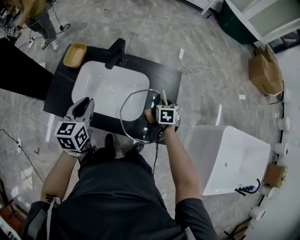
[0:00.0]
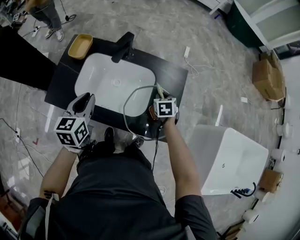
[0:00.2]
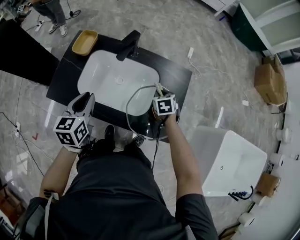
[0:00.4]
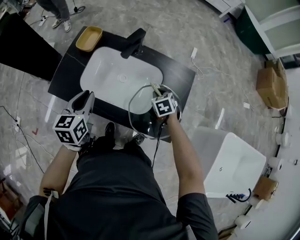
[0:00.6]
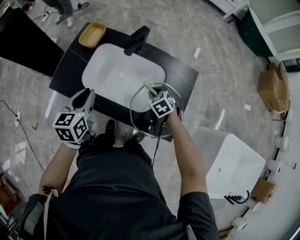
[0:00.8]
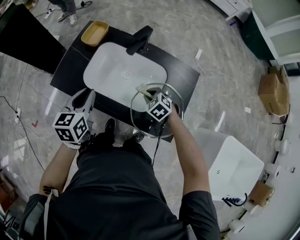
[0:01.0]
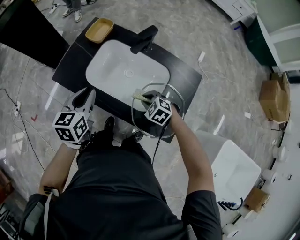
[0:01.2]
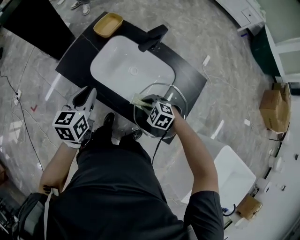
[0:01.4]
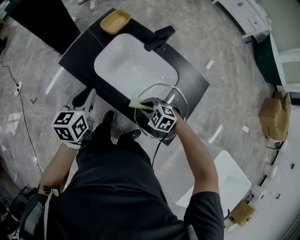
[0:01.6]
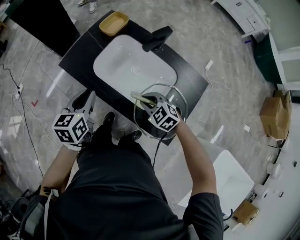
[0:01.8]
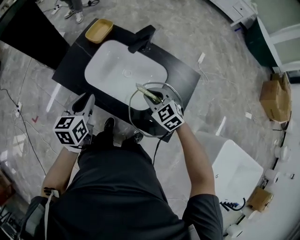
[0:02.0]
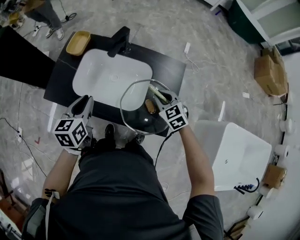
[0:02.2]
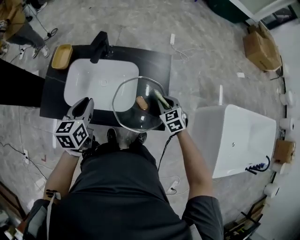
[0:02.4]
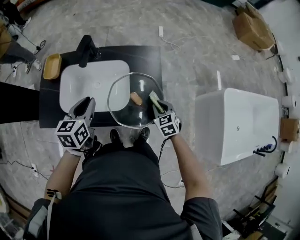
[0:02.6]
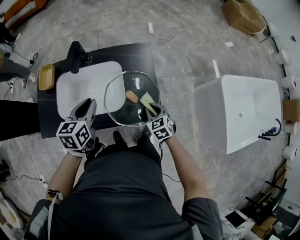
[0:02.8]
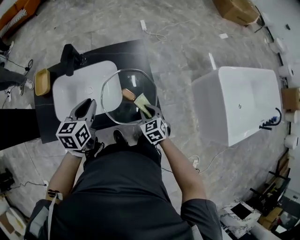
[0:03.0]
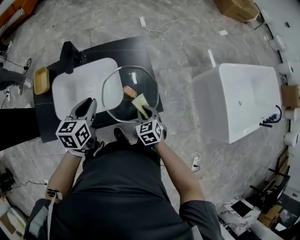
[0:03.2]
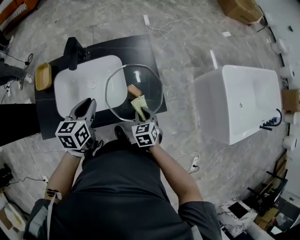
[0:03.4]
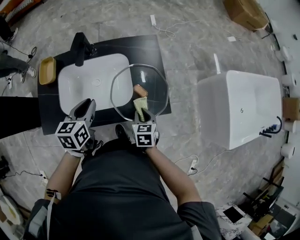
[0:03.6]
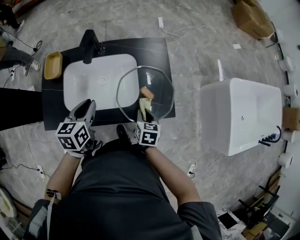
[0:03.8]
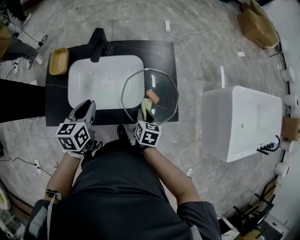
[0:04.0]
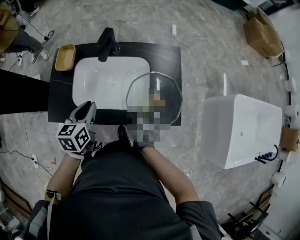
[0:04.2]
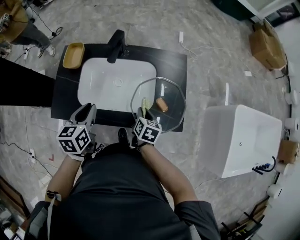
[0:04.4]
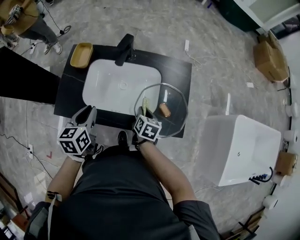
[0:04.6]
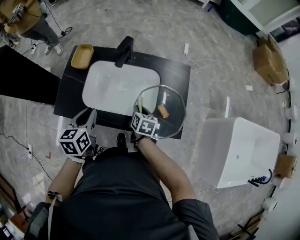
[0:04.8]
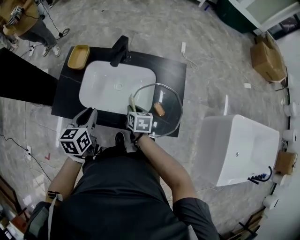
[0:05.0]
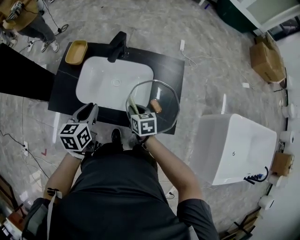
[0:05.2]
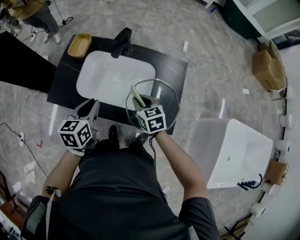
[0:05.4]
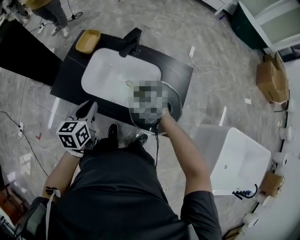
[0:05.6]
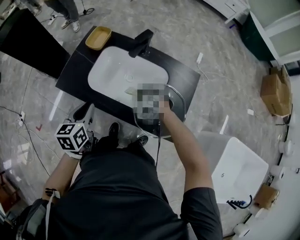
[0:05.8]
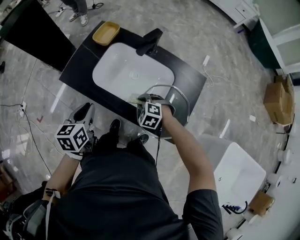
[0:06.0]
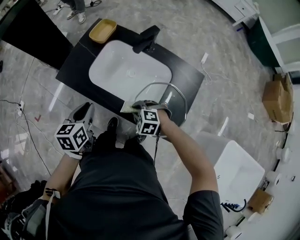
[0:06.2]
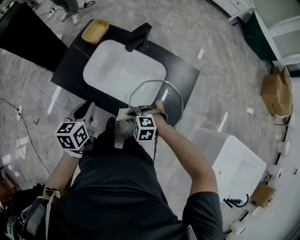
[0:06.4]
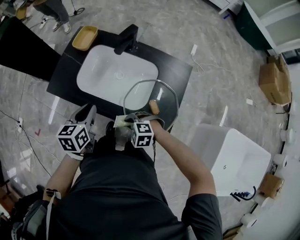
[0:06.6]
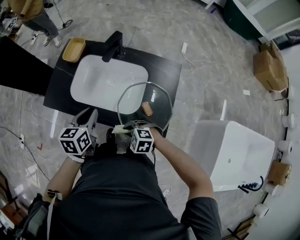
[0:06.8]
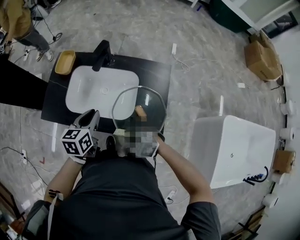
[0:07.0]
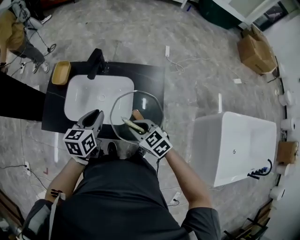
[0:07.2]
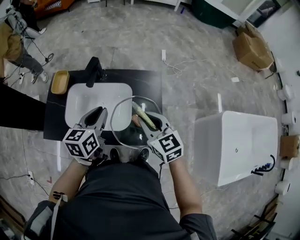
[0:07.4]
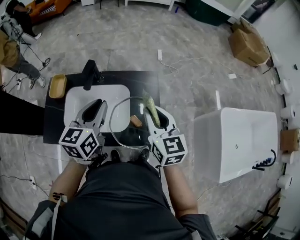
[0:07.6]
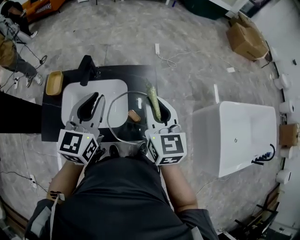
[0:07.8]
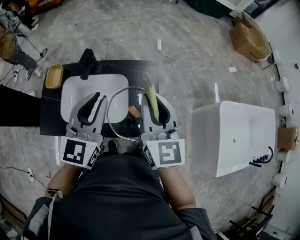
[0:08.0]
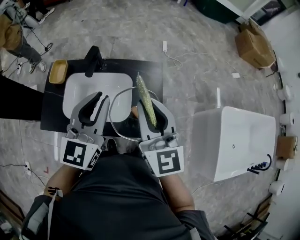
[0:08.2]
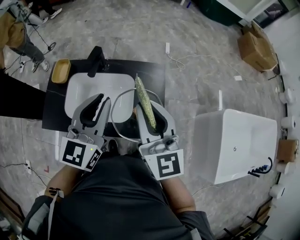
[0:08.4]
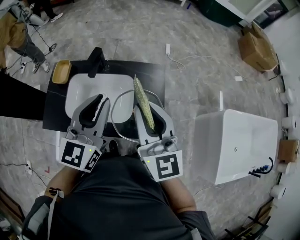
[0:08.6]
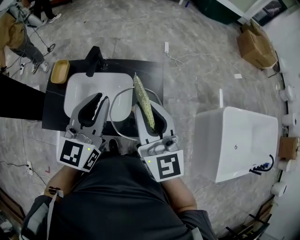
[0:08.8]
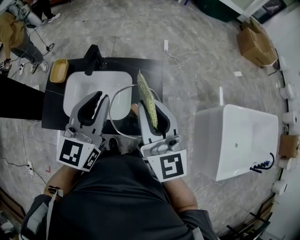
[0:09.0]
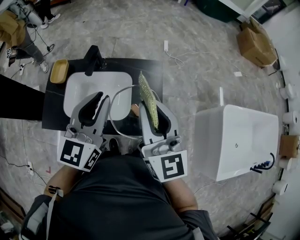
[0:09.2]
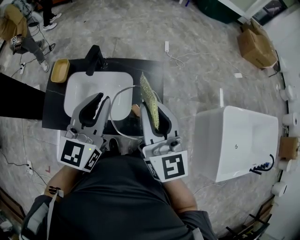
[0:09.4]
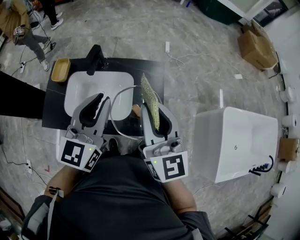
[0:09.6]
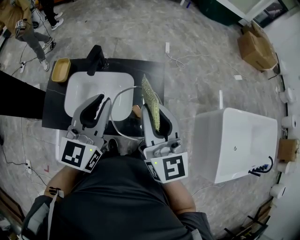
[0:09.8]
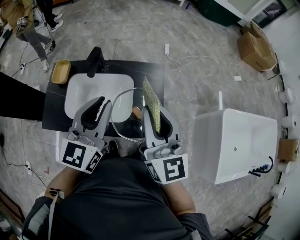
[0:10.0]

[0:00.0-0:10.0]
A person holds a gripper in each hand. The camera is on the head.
0:00.0 to 0:01.4: The left gripper ends up approximately 10 cm from where it was; the right gripper shifts by approximately 20 cm, and twists approximately 70 degrees counterclockwise, seen from behind.
0:01.4 to 0:02.8: The right gripper travels upward and back again, about 10 cm each way, and rotates approximately 80 degrees; the left gripper ends up some 20 cm from where it was, and swivels some 40 degrees.
0:02.8 to 0:04.2: The two grippers go roughly 10 cm to the left. The right gripper rotates around the line of its fingers by about 40 degrees, clockwise from behind.
0:04.2 to 0:05.8: The left gripper shifts by some 10 cm, and rotates roughly 20 degrees. The right gripper goes upward and returns, approximately 10 cm each way, and twists roughly 100 degrees counterclockwise, seen from behind.
0:05.8 to 0:07.2: The left gripper shifts by roughly 20 cm, and changes its angle by some 20 degrees, while the right gripper changes place by about 20 cm, and rolls clockwise, seen from behind, by some 40 degrees.
0:07.2 to 0:08.6: Both grippers travel together upward, about 25 cm. The left gripper turns by roughly 30 degrees; the right gripper angles its fingers upward, by some 40 degrees.
0:08.6 to 0:10.0: The grippers move only a little.

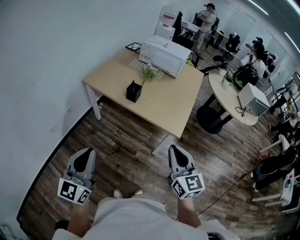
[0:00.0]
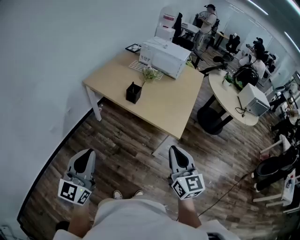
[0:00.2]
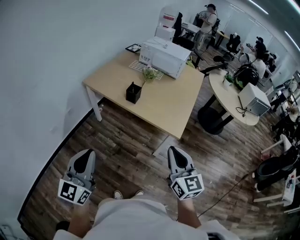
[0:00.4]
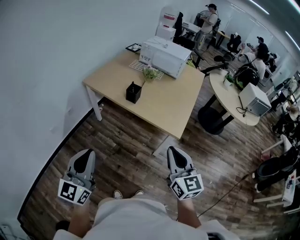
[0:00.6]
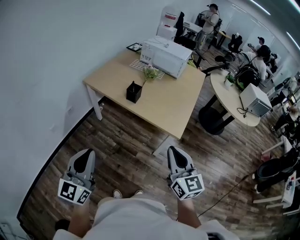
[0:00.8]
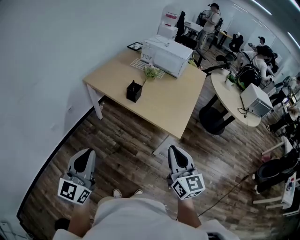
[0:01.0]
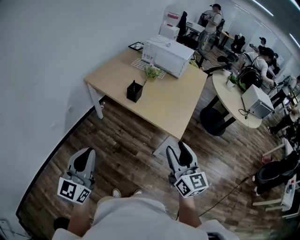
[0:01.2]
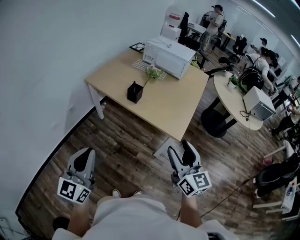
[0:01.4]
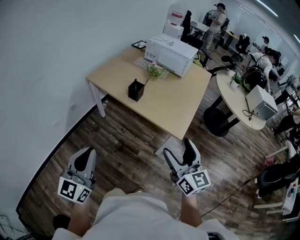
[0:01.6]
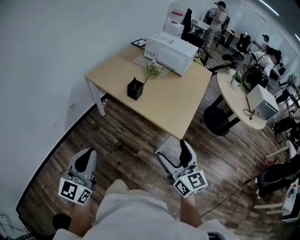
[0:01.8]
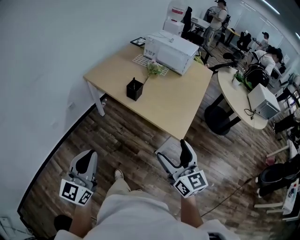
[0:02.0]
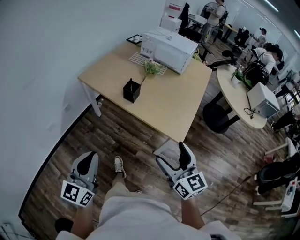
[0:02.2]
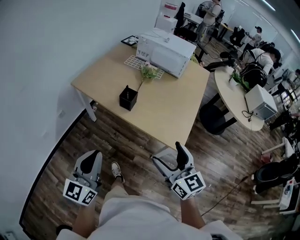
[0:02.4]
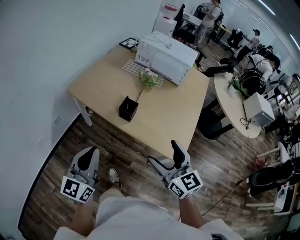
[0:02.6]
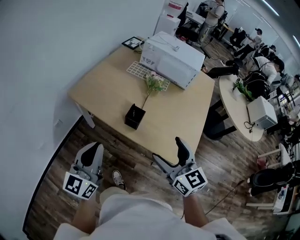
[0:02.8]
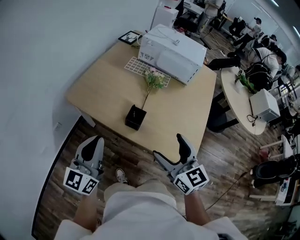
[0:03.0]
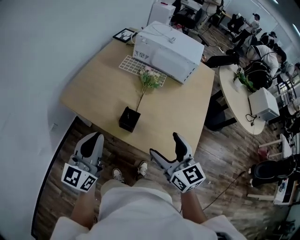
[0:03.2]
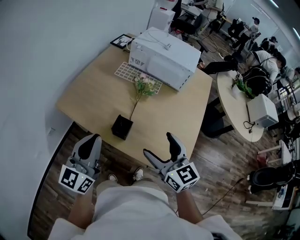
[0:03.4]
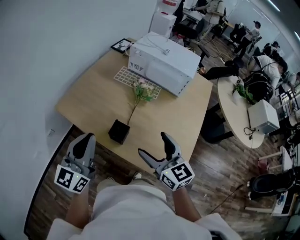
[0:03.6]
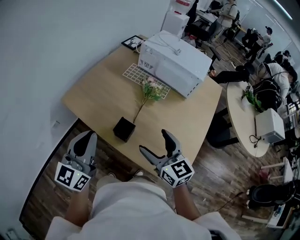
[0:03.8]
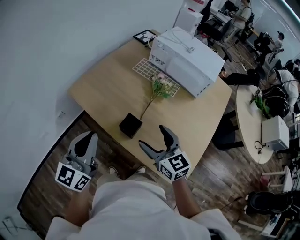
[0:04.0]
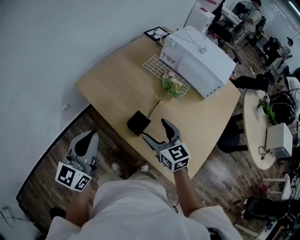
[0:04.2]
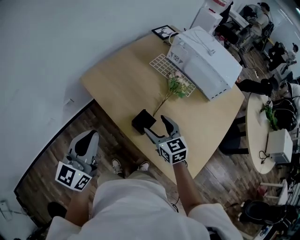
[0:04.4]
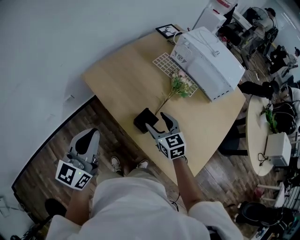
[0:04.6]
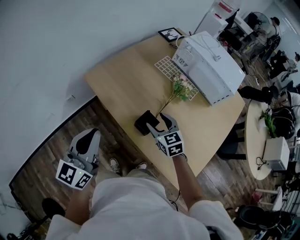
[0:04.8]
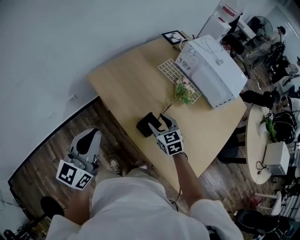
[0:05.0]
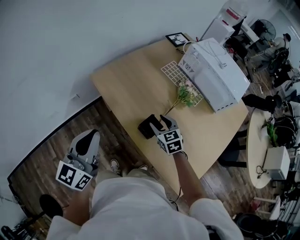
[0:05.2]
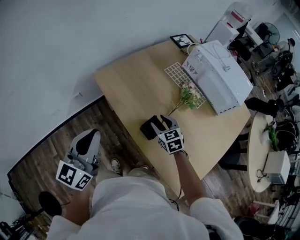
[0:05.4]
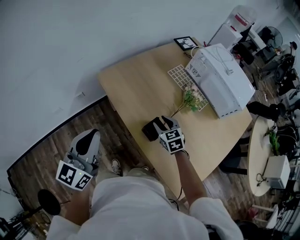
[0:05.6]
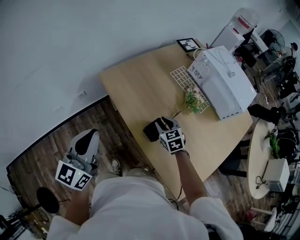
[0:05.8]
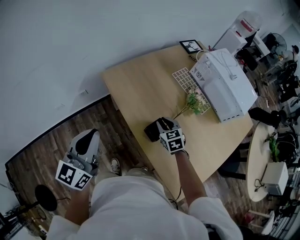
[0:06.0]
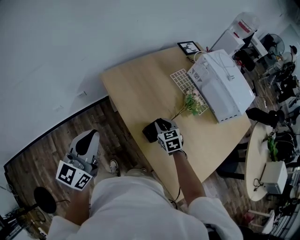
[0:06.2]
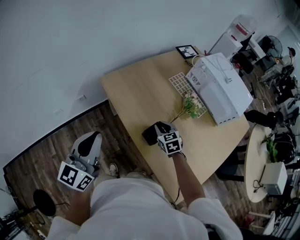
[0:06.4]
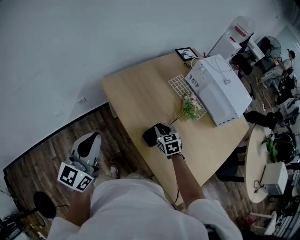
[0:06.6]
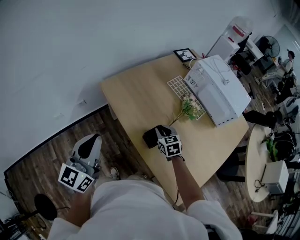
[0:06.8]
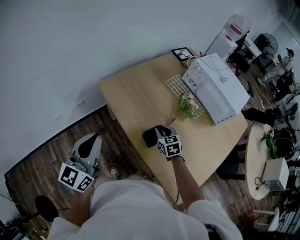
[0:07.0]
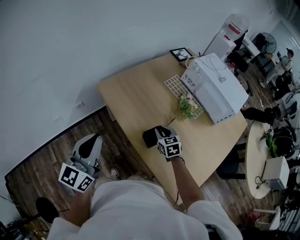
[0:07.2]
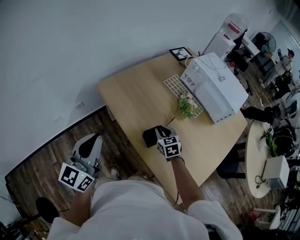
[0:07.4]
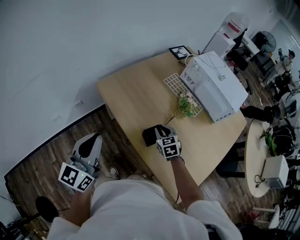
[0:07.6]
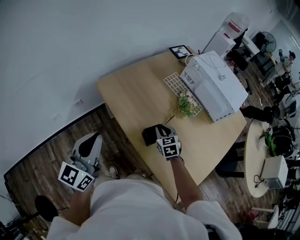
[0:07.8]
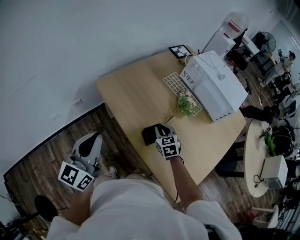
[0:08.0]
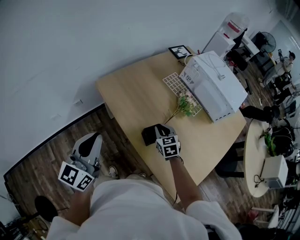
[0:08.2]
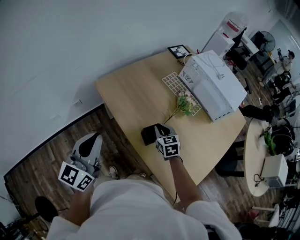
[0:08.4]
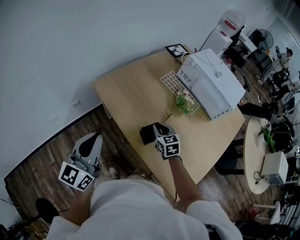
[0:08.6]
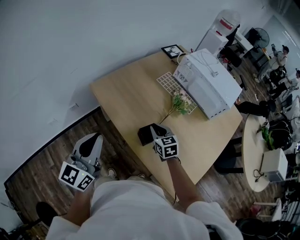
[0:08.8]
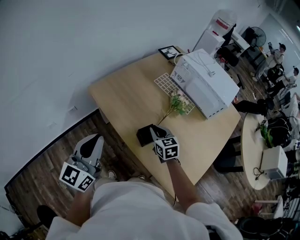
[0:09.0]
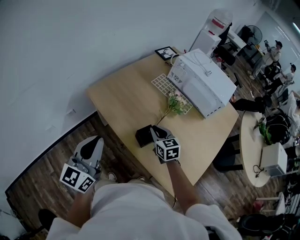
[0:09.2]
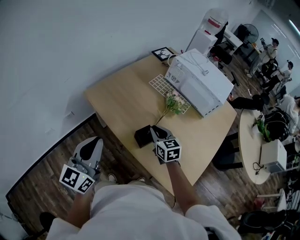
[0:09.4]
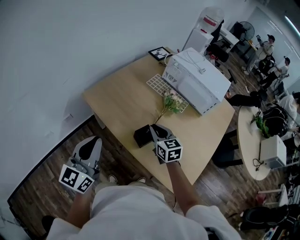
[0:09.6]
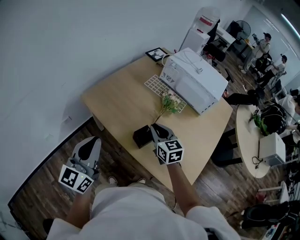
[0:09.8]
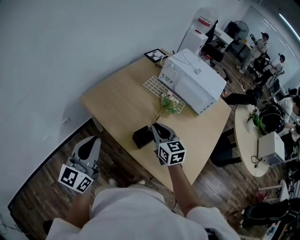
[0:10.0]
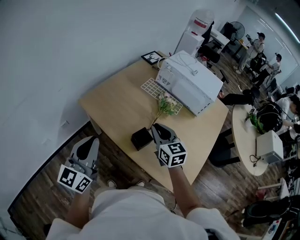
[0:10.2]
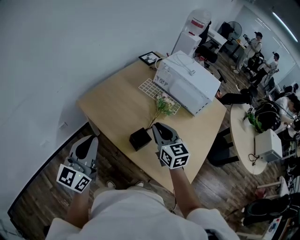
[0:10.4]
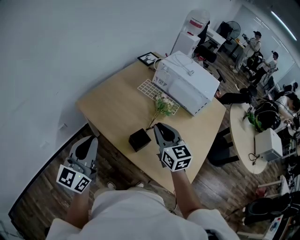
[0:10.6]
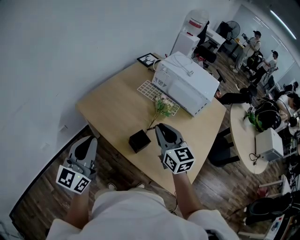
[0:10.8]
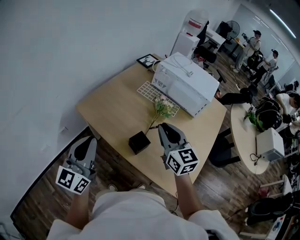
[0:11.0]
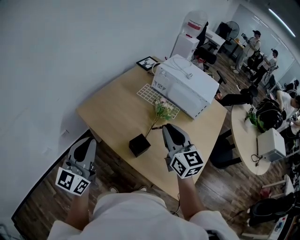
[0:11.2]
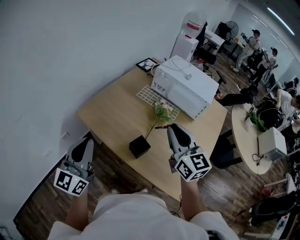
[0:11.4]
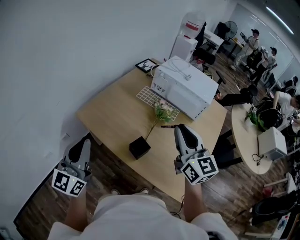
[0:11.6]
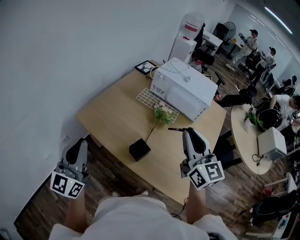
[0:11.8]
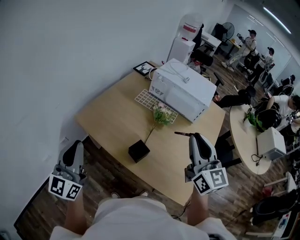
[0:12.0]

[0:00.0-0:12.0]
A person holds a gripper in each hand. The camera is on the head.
0:00.0 to 0:01.6: The right gripper ends up approximately 5 cm from where it was, and opens up.
0:01.6 to 0:03.0: The grippers both shift forward by about 35 cm.
0:03.0 to 0:04.4: The left gripper moves about 10 cm to the right and comes back; the right gripper heads forward and downward, covering approximately 20 cm, and swivels roughly 20 degrees.
0:04.4 to 0:06.0: The right gripper is displaced downward and forward by roughly 10 cm, turns by some 20 degrees, and closes. The left gripper heads to the left, covering about 5 cm.
0:06.0 to 0:09.0: The grippers move only a little.
0:09.0 to 0:10.4: The right gripper is displaced upward by some 15 cm.
0:10.4 to 0:12.0: The right gripper heads upward and to the right, covering roughly 20 cm, and swivels about 20 degrees, while the left gripper is displaced upward by about 5 cm.

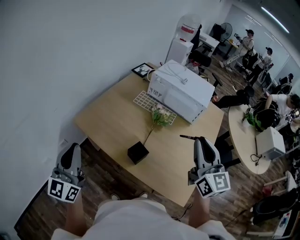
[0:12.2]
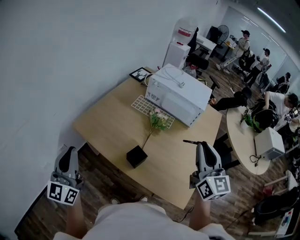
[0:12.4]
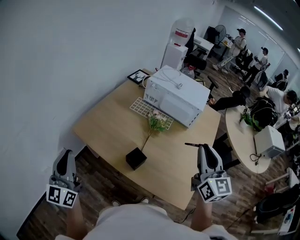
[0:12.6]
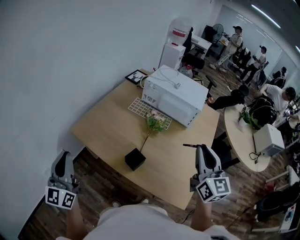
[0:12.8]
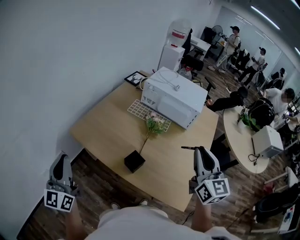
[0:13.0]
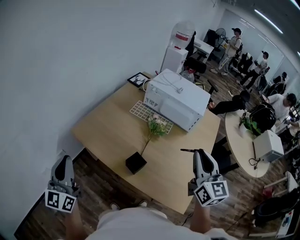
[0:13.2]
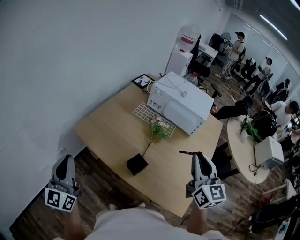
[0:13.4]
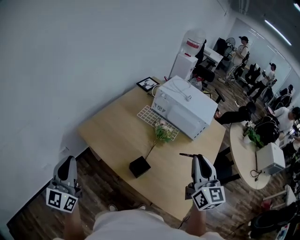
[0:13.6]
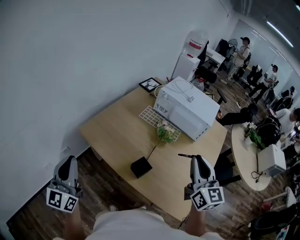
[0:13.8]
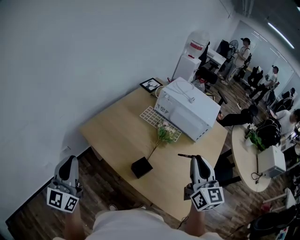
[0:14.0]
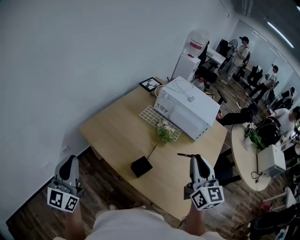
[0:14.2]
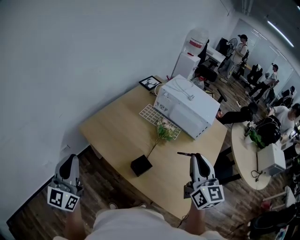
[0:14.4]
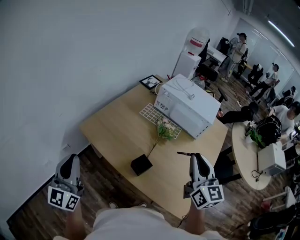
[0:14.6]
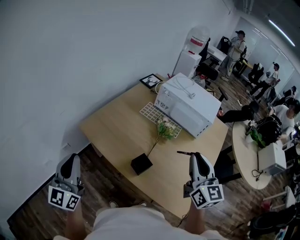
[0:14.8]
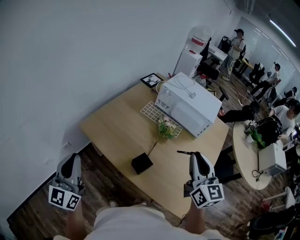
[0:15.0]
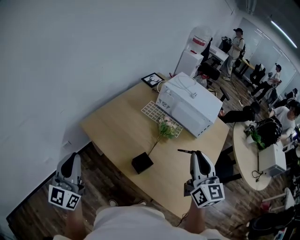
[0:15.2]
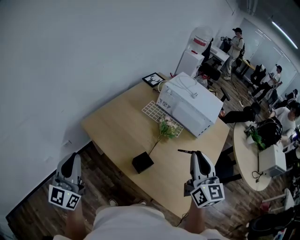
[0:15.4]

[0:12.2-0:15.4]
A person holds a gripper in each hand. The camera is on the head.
0:12.2 to 0:13.8: There are only small adjustments of the grippers.
0:13.8 to 0:15.4: Both grippers stay put.
